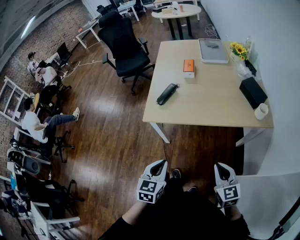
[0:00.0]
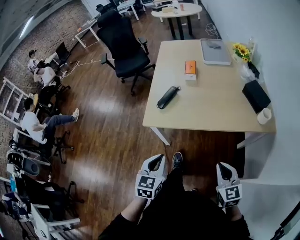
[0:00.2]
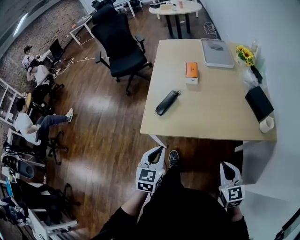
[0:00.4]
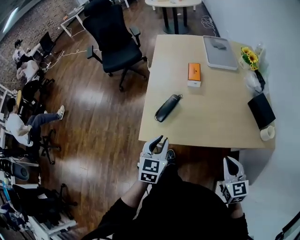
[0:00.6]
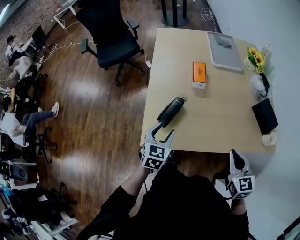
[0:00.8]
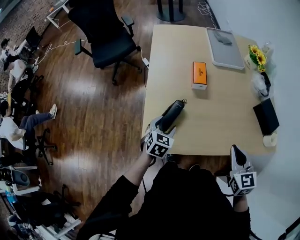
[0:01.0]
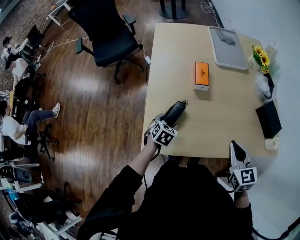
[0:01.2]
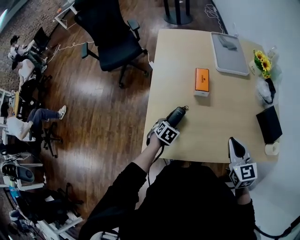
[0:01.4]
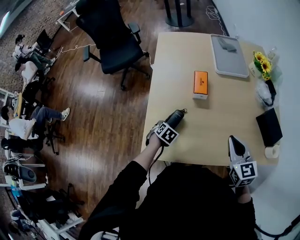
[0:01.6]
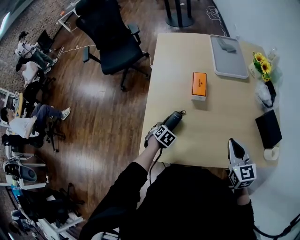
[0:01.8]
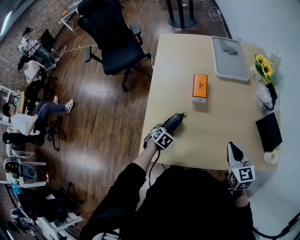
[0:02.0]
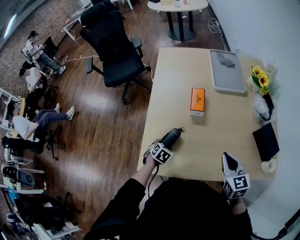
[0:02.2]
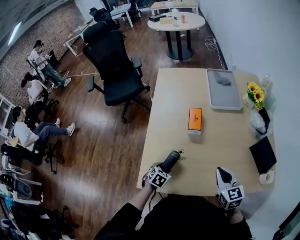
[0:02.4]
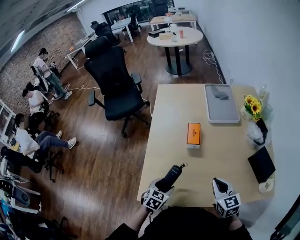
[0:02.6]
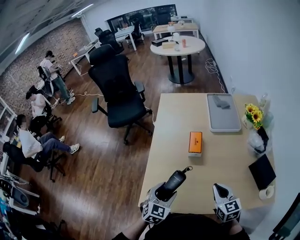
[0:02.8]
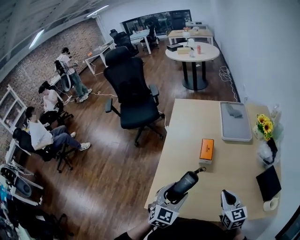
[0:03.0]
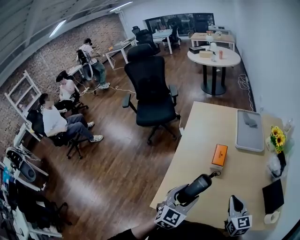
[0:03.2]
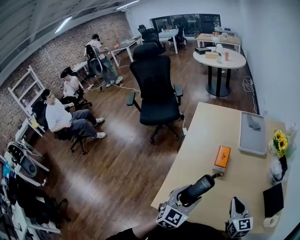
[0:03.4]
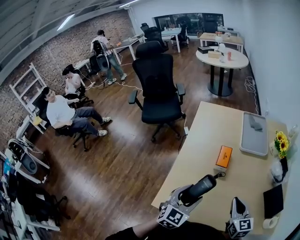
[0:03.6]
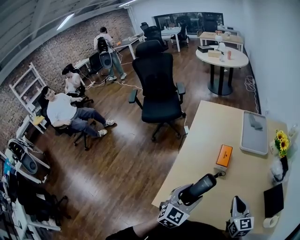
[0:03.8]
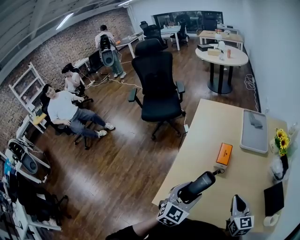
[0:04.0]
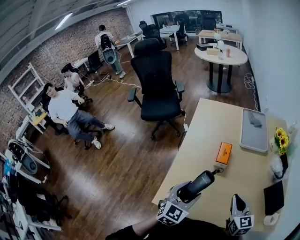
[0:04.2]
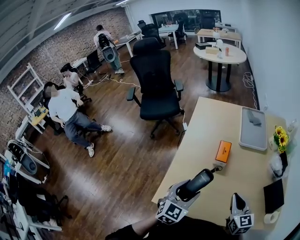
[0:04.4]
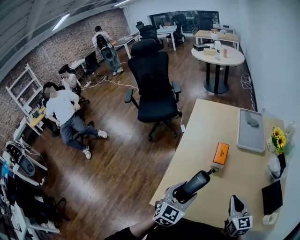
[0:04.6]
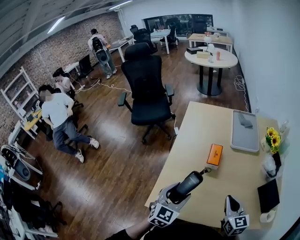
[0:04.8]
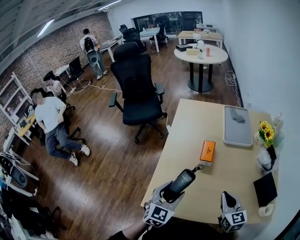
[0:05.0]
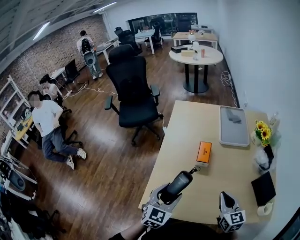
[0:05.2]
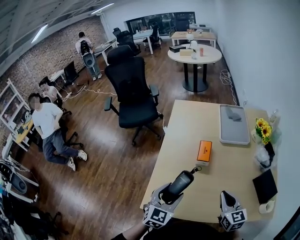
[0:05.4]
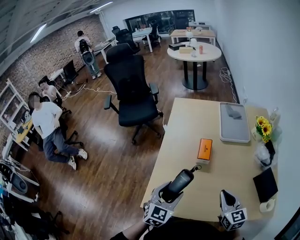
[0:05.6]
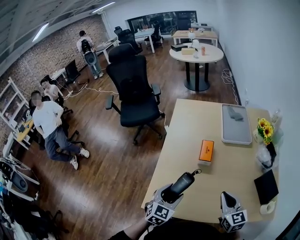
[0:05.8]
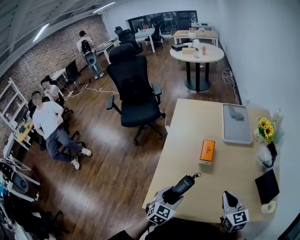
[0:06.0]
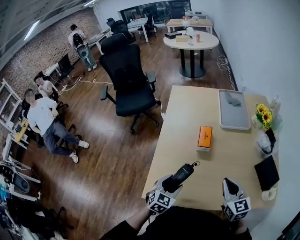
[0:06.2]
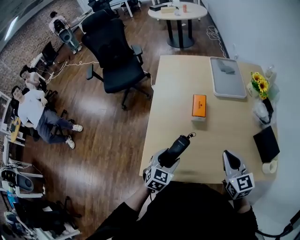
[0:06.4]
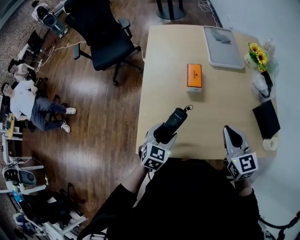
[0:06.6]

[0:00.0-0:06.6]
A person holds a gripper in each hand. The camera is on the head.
0:00.0 to 0:01.6: The two grippers travel together, forward, some 40 cm. The left gripper heads downward, covering approximately 20 cm, points its fingers approximately 40 degrees further downward, and opens.
0:01.6 to 0:03.2: The left gripper is displaced upward by approximately 30 cm, and angles its fingers upward, by roughly 50 degrees.
0:03.2 to 0:05.0: The grippers make only small movements.
0:05.0 to 0:06.6: The left gripper travels downward and forward by approximately 15 cm.

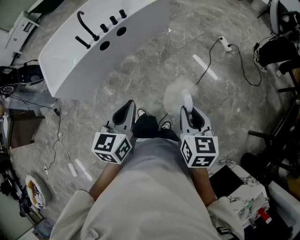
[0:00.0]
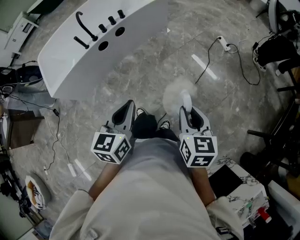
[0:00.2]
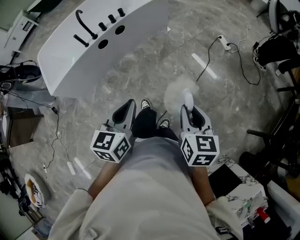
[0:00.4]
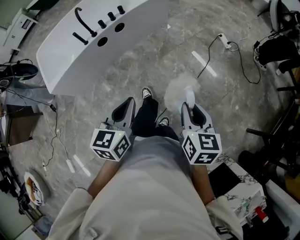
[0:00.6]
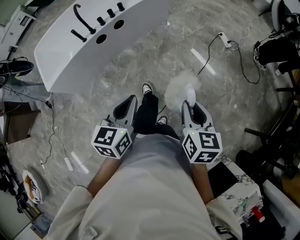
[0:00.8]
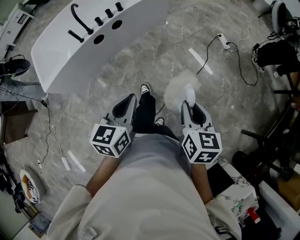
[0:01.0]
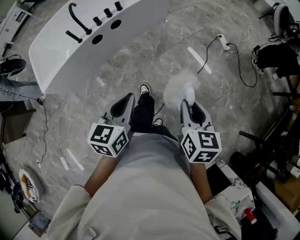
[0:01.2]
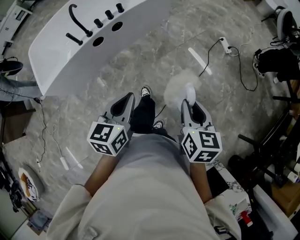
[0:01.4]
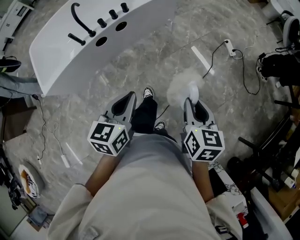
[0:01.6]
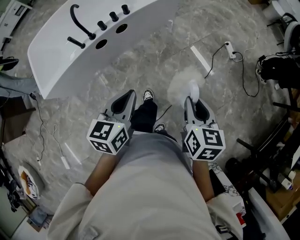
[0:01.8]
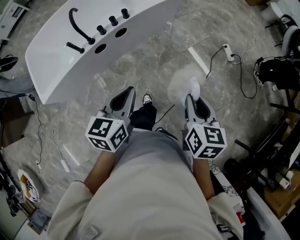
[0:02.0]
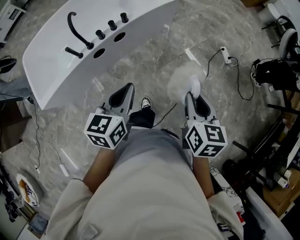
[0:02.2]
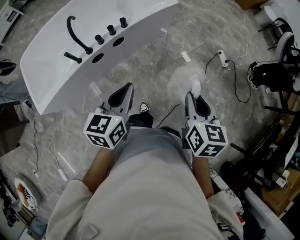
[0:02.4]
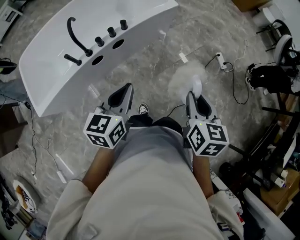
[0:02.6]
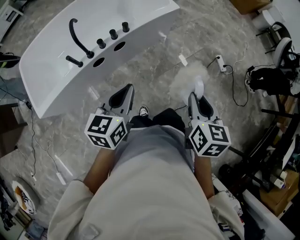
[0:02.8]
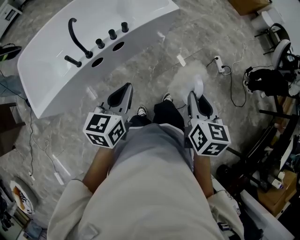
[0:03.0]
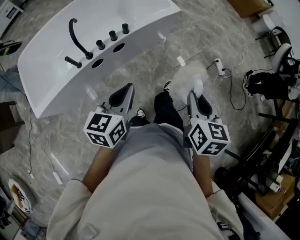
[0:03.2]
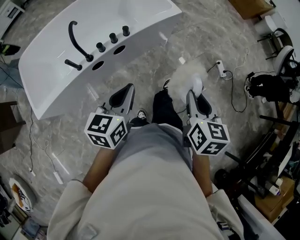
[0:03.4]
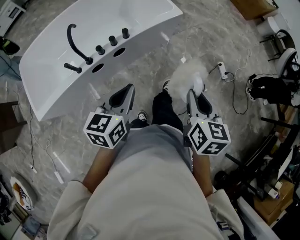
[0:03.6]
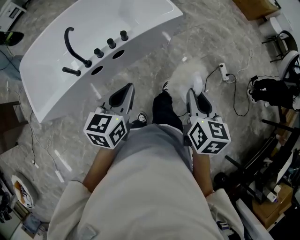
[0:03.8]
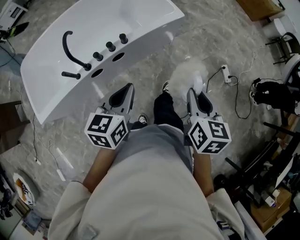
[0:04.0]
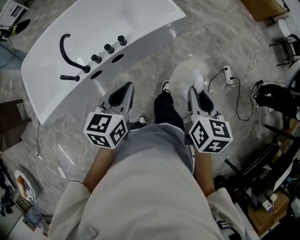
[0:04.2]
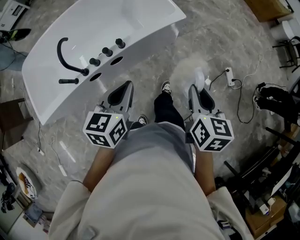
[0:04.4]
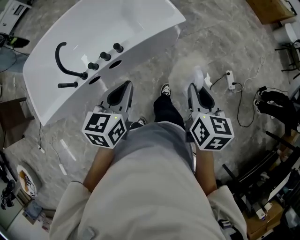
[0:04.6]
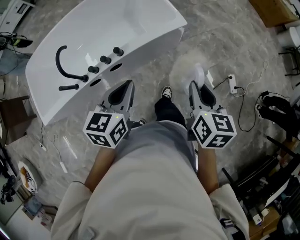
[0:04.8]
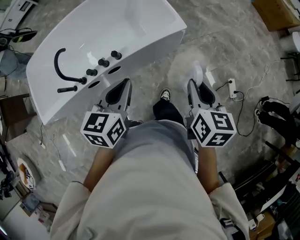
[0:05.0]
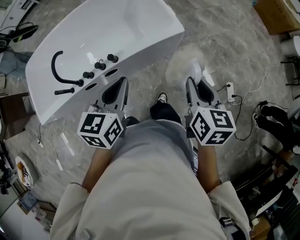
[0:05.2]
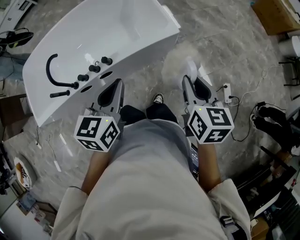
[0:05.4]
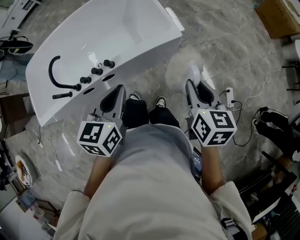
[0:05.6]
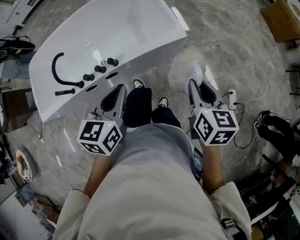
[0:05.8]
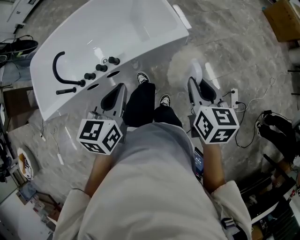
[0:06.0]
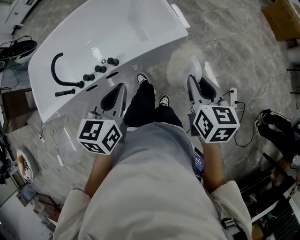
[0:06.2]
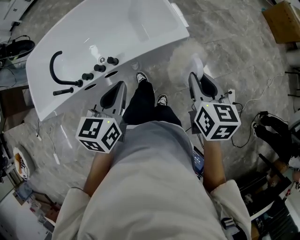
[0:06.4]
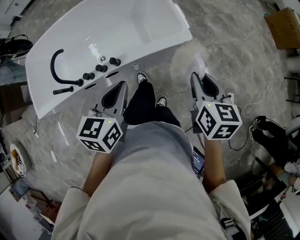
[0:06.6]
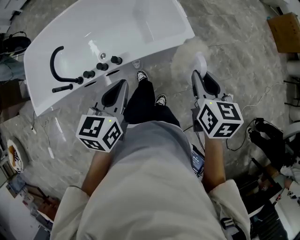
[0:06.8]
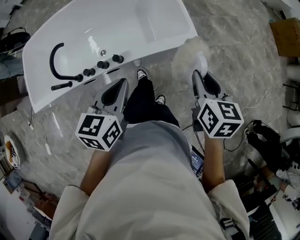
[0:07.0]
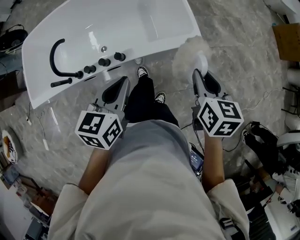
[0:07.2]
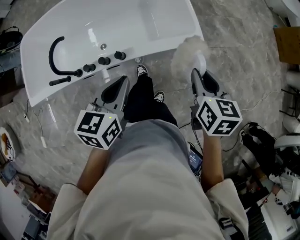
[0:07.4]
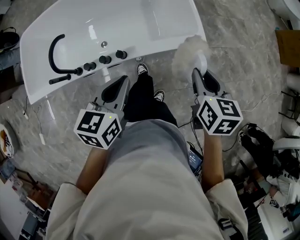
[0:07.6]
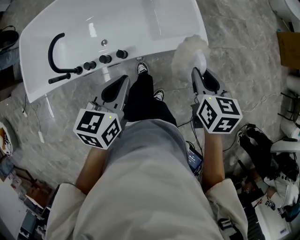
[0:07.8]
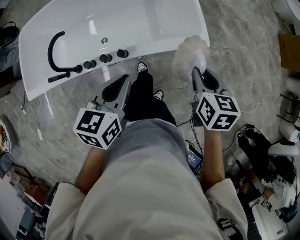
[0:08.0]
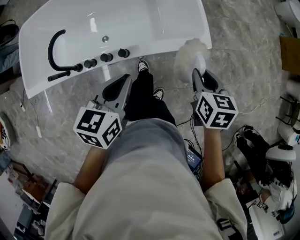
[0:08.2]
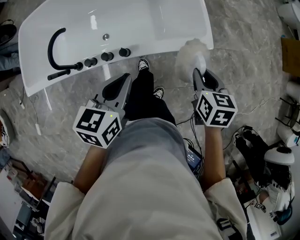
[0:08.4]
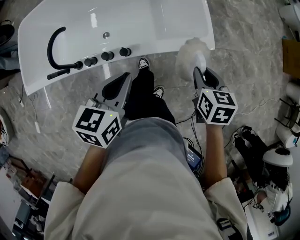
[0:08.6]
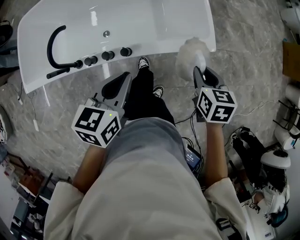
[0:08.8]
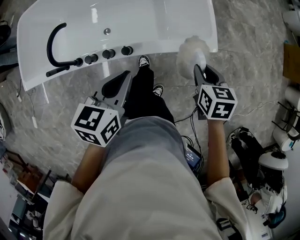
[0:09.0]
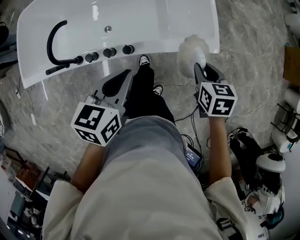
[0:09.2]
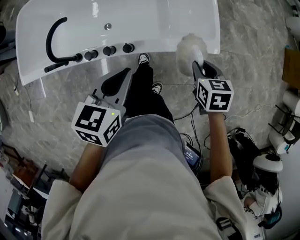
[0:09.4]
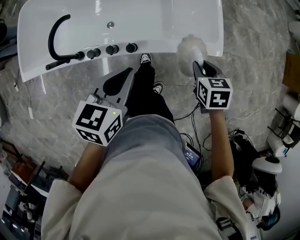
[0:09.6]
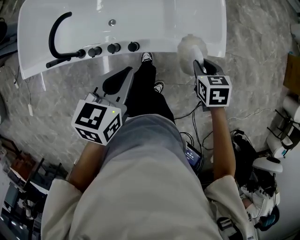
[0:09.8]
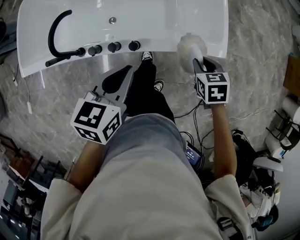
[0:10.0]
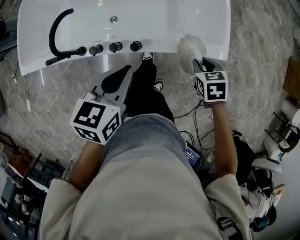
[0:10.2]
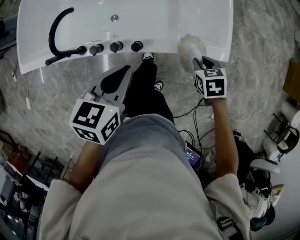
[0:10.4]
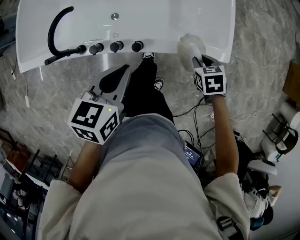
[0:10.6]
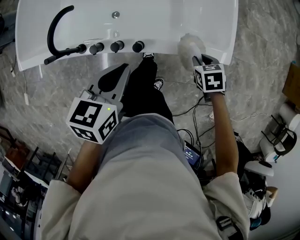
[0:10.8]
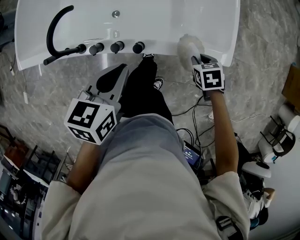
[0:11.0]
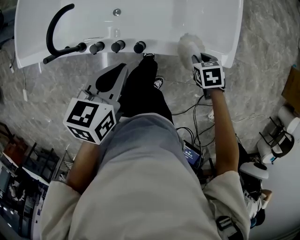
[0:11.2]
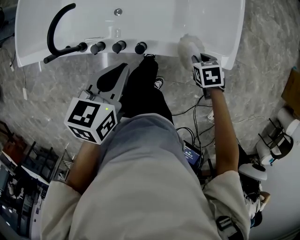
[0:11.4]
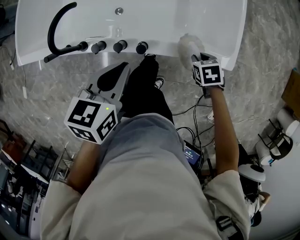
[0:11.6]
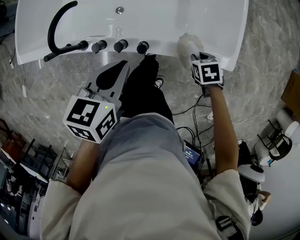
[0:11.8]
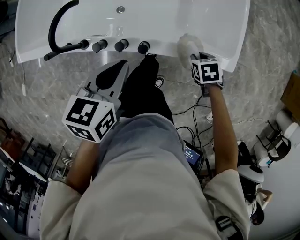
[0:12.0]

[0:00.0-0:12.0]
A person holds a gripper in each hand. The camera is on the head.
0:00.0 to 0:01.6: Both grippers travel together forward, approximately 15 cm.
0:01.6 to 0:03.0: The grippers both shift forward and to the left by approximately 20 cm.
0:03.0 to 0:04.4: Both grippers travel together forward, approximately 25 cm.
0:04.4 to 0:06.0: Both grippers travel together forward and to the right, roughly 20 cm.
0:06.0 to 0:07.6: Both grippers move forward and to the left, approximately 15 cm.
0:07.6 to 0:09.0: The right gripper goes some 10 cm downward and forward; the left gripper changes place by about 5 cm.
0:09.0 to 0:10.4: The left gripper goes approximately 5 cm to the left. The right gripper is displaced downward and to the left by some 10 cm, and turns by approximately 30 degrees.
0:10.4 to 0:12.0: The right gripper is displaced downward by some 10 cm, while the left gripper ends up some 5 cm from where it was.

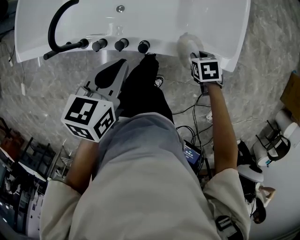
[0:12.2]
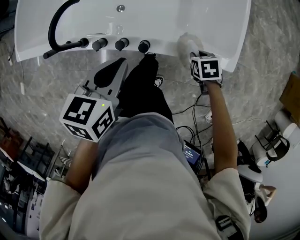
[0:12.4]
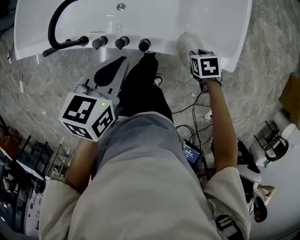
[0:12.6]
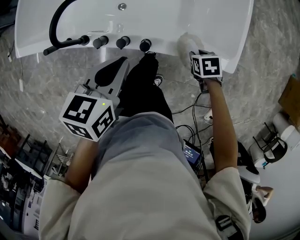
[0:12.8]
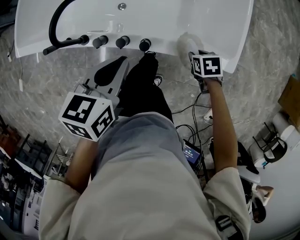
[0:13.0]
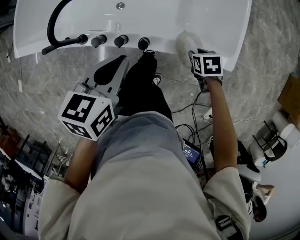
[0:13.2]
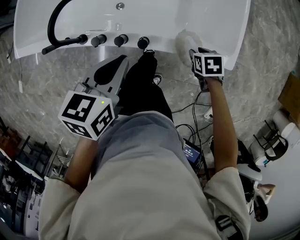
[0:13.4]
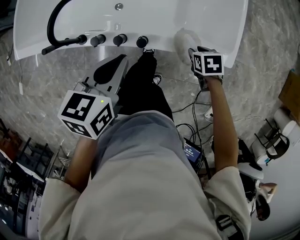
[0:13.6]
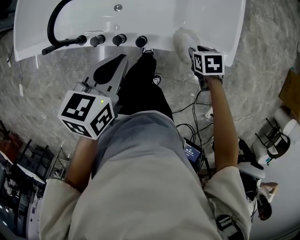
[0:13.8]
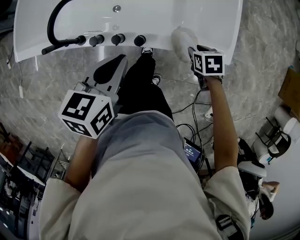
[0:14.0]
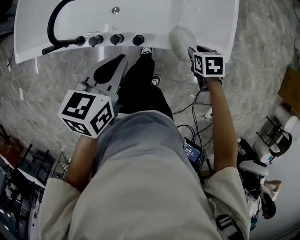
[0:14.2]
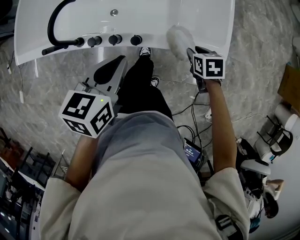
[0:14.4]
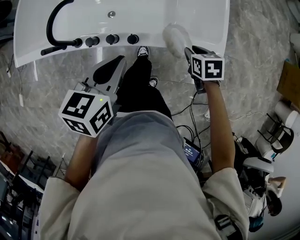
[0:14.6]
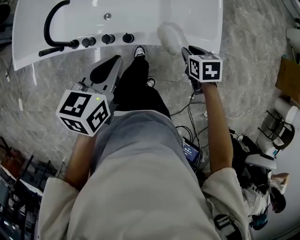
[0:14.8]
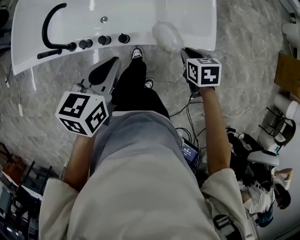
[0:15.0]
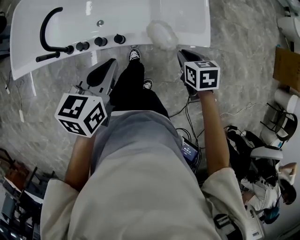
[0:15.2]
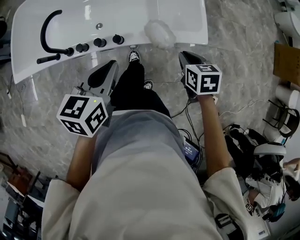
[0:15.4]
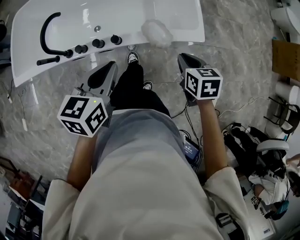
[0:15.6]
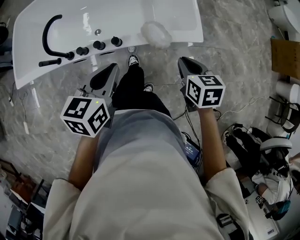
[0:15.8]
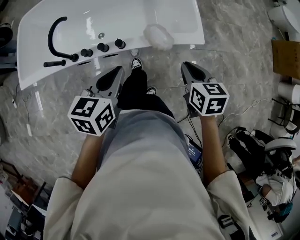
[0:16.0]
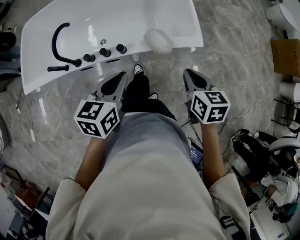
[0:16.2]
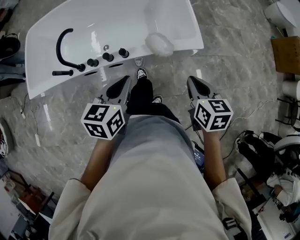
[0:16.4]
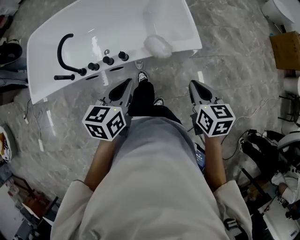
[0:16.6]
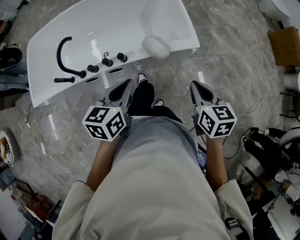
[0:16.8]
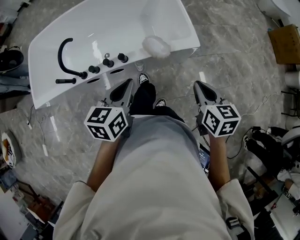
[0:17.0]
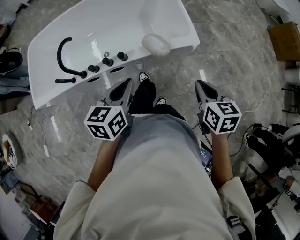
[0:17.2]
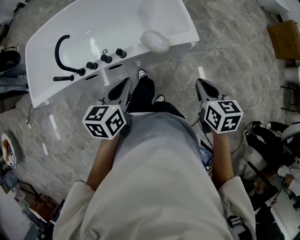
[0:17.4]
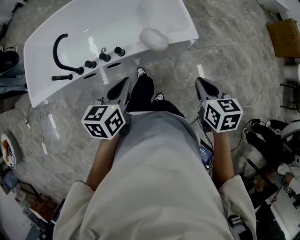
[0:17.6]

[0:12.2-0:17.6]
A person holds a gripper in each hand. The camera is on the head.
0:12.2 to 0:13.6: The grippers move only a little.
0:13.6 to 0:15.0: The right gripper travels upward by roughly 10 cm; the left gripper changes place by roughly 10 cm.
0:15.0 to 0:16.2: The left gripper travels backward by about 10 cm. Meanwhile the right gripper goes about 20 cm upward and backward, and turns by about 20 degrees.
0:16.2 to 0:17.6: The right gripper heads backward and to the right, covering approximately 10 cm.
